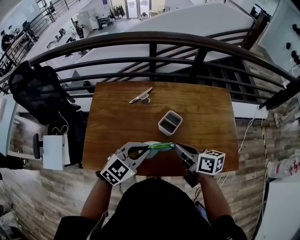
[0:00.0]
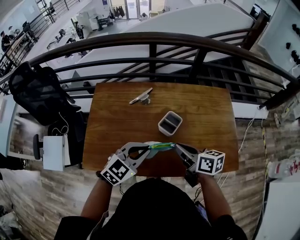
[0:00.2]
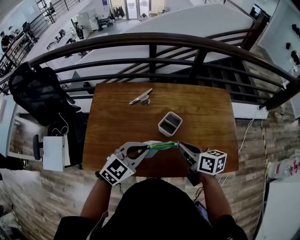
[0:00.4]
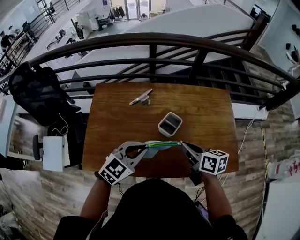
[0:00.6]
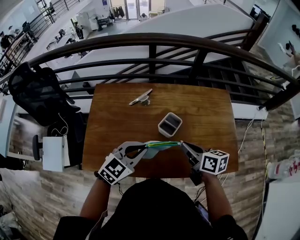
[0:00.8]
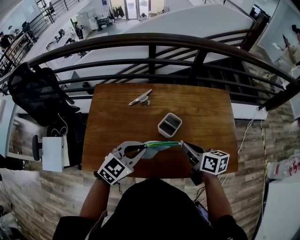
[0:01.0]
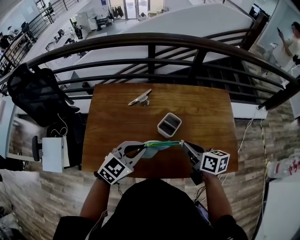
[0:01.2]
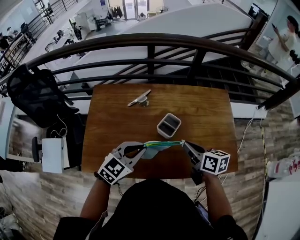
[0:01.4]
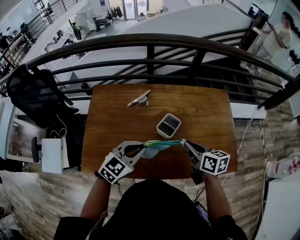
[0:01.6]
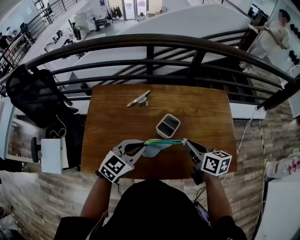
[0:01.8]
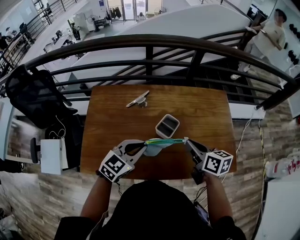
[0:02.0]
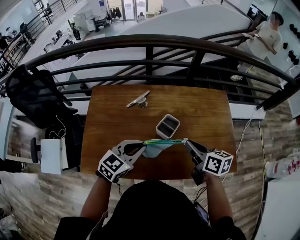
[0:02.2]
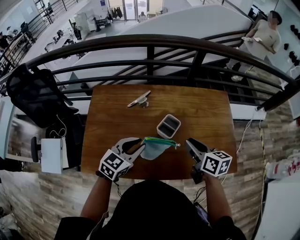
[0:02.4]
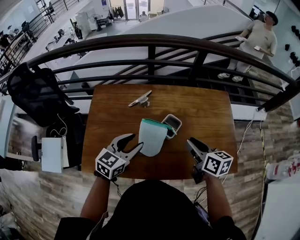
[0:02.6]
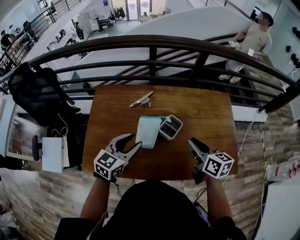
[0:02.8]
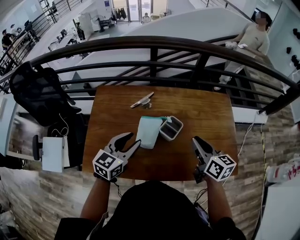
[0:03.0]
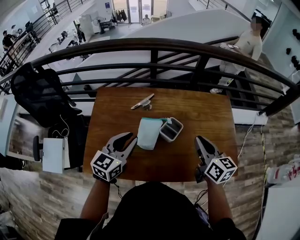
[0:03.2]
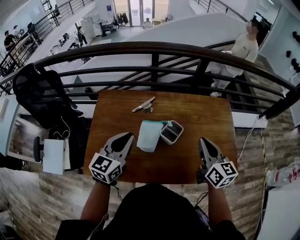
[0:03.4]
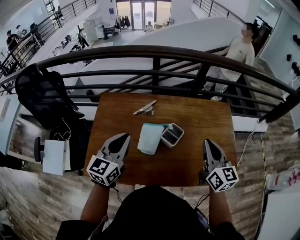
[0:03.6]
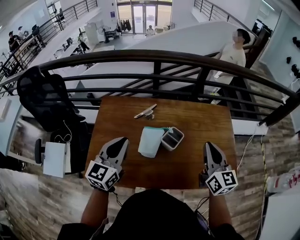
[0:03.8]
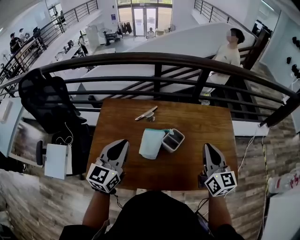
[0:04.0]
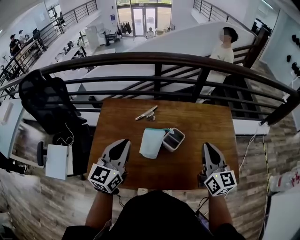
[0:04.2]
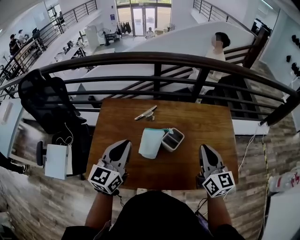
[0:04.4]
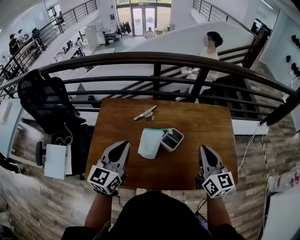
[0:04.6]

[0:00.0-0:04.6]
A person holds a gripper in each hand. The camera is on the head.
0:00.0 to 0:01.6: The right gripper goes roughly 5 cm to the right.
0:01.6 to 0:03.0: The left gripper travels to the left by some 5 cm, changes its angle by approximately 20 degrees, and opens up. The right gripper goes about 5 cm upward.
0:03.0 to 0:04.6: Both grippers move upward, roughly 10 cm. The left gripper closes up, while the right gripper turns by roughly 20 degrees.

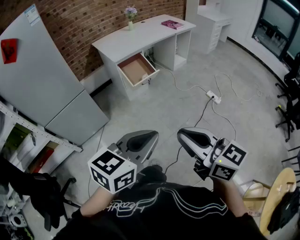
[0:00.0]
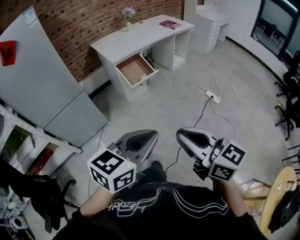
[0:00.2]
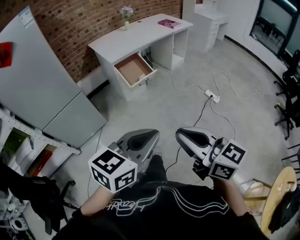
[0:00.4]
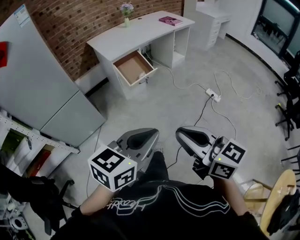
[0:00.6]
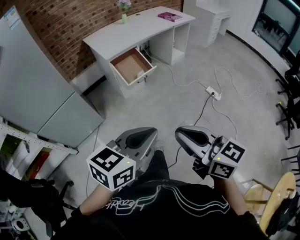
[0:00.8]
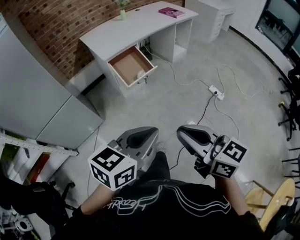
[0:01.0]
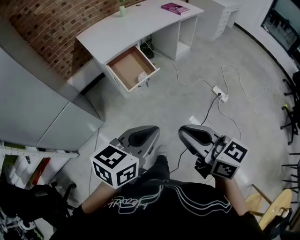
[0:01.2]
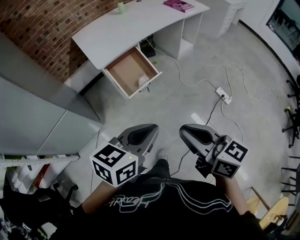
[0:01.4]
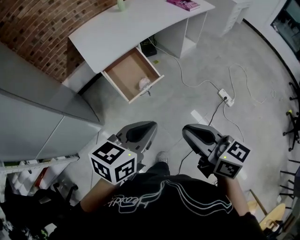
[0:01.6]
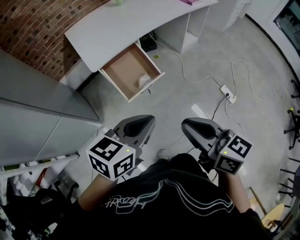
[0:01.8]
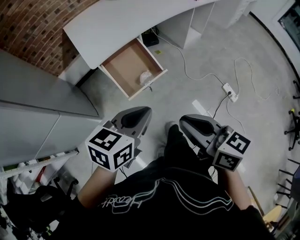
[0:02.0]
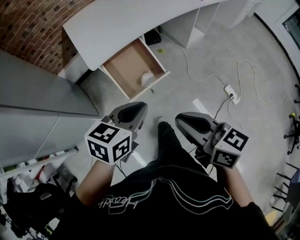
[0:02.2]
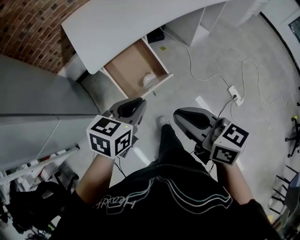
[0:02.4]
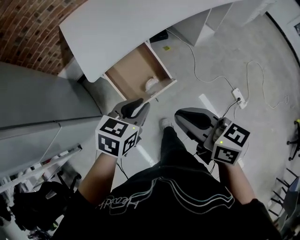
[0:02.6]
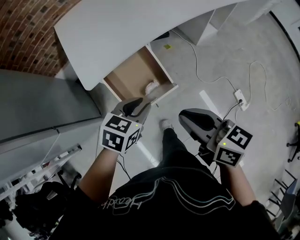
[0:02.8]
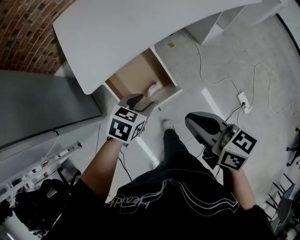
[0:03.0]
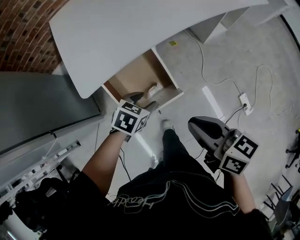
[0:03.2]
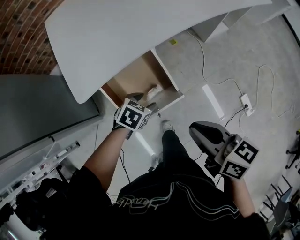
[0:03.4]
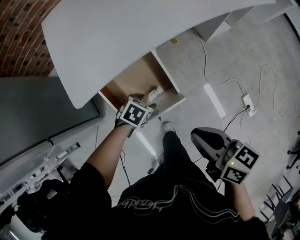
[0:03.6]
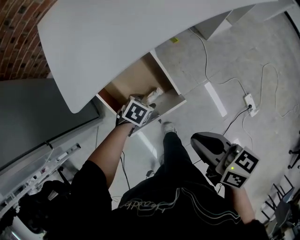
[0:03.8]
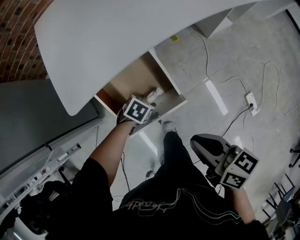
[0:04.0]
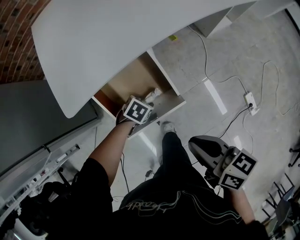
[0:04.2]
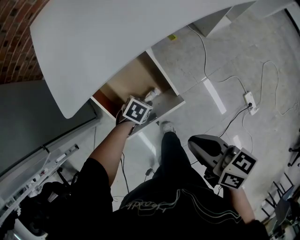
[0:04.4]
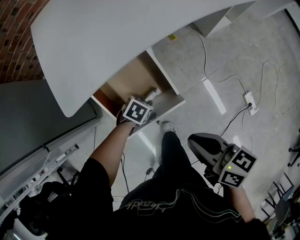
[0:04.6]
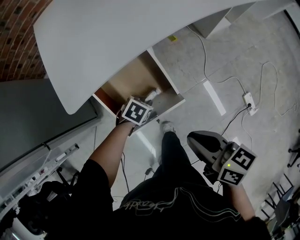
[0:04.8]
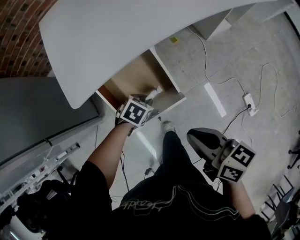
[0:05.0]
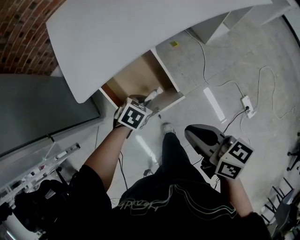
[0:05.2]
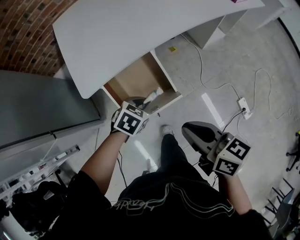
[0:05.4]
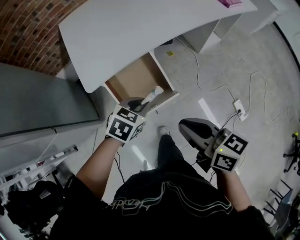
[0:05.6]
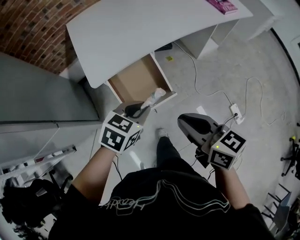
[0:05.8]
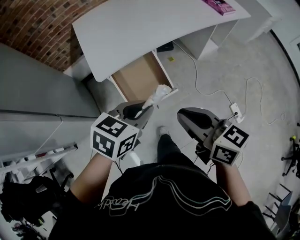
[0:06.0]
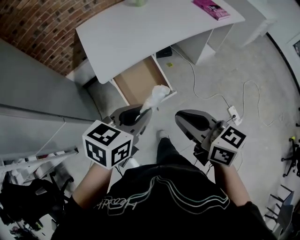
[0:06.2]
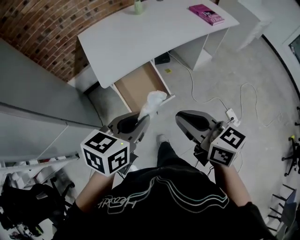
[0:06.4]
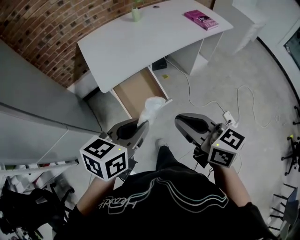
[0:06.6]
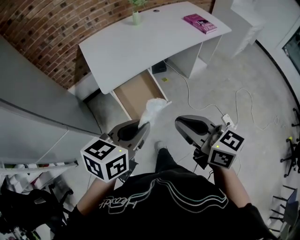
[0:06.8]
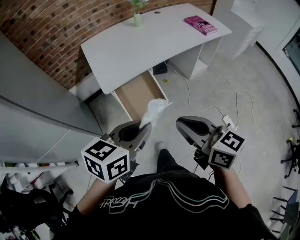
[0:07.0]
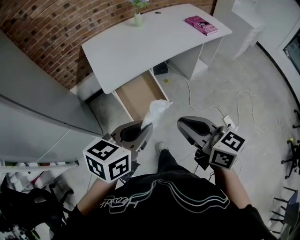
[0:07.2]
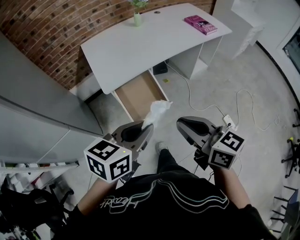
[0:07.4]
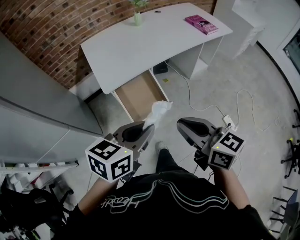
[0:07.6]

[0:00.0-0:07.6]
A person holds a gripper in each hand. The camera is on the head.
0:00.0 to 0:01.6: The pair of grippers is taken forward, approximately 50 cm.
0:01.6 to 0:03.0: The left gripper goes approximately 50 cm forward and downward, turns by some 30 degrees, and opens up. The right gripper is displaced forward by about 40 cm.
0:03.0 to 0:04.6: The right gripper shifts some 15 cm downward, while the left gripper moves downward, about 25 cm, turns by about 20 degrees, and closes its fingers.
0:04.6 to 0:06.0: The left gripper heads upward, covering about 40 cm, and points its fingers some 30 degrees further upward, while the right gripper moves upward, approximately 25 cm, and swivels about 20 degrees.
0:06.0 to 0:07.6: The left gripper heads upward and backward, covering roughly 15 cm. Meanwhile the right gripper moves backward and upward, some 15 cm.

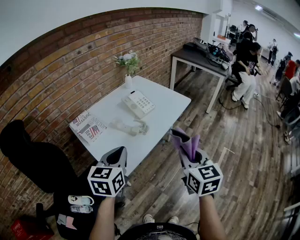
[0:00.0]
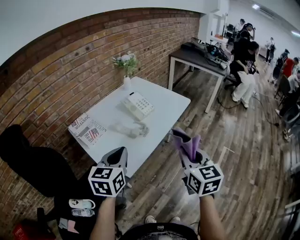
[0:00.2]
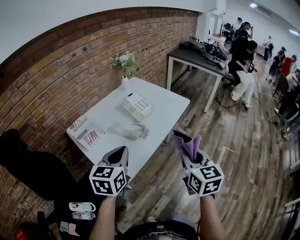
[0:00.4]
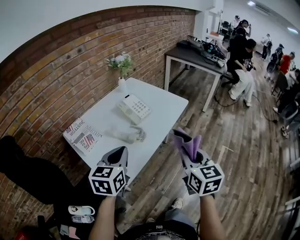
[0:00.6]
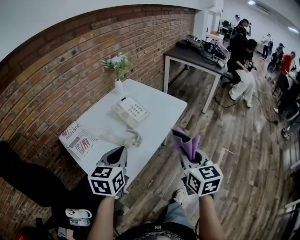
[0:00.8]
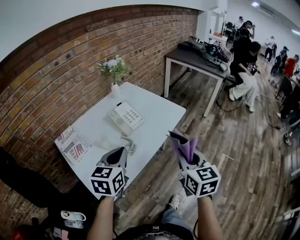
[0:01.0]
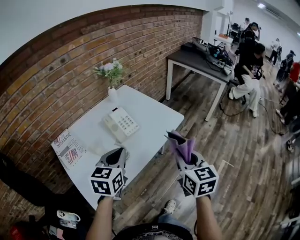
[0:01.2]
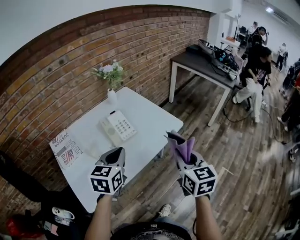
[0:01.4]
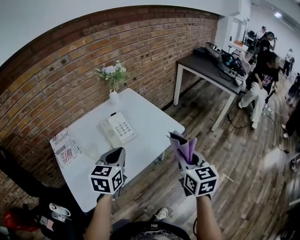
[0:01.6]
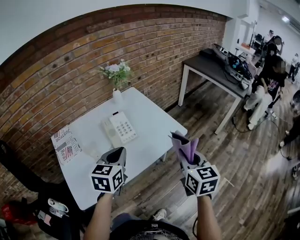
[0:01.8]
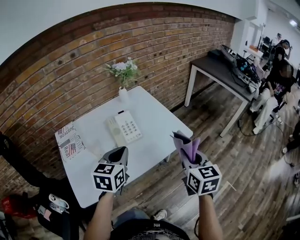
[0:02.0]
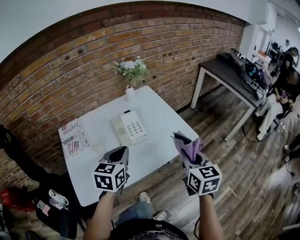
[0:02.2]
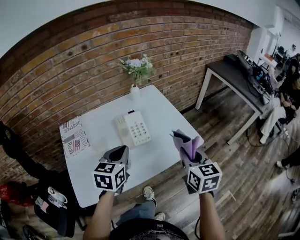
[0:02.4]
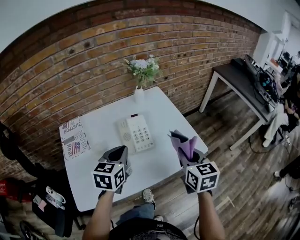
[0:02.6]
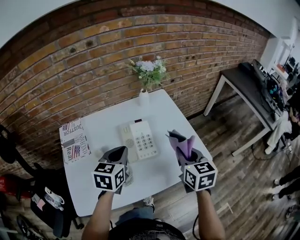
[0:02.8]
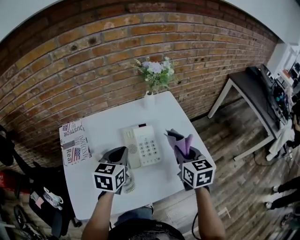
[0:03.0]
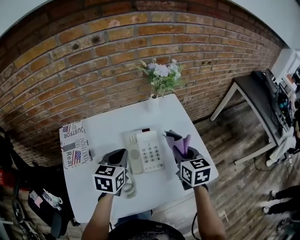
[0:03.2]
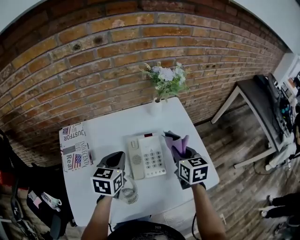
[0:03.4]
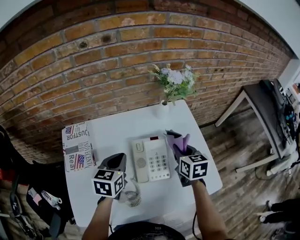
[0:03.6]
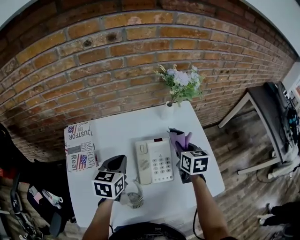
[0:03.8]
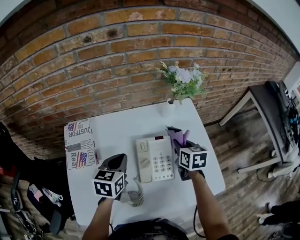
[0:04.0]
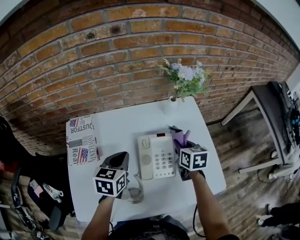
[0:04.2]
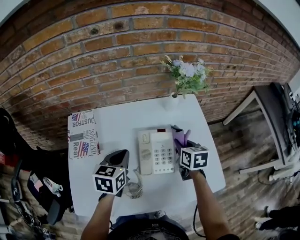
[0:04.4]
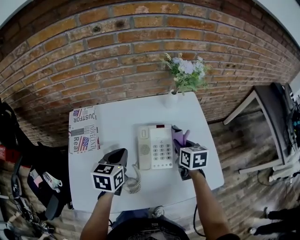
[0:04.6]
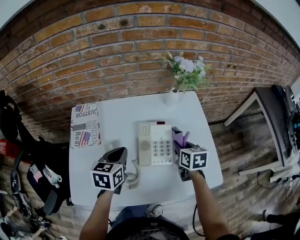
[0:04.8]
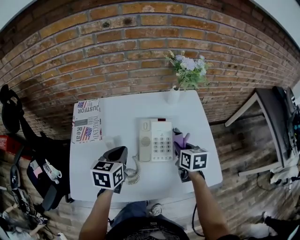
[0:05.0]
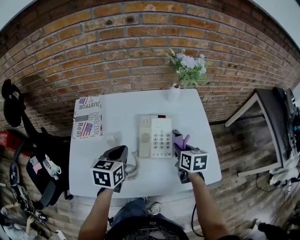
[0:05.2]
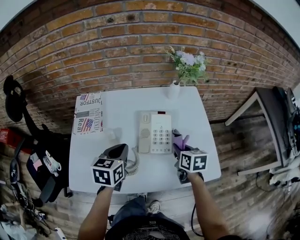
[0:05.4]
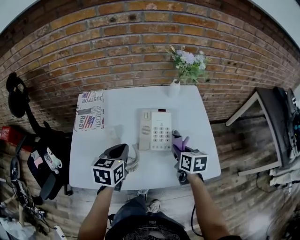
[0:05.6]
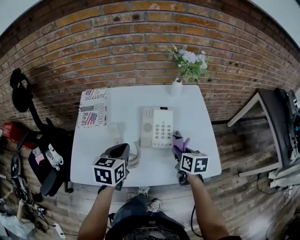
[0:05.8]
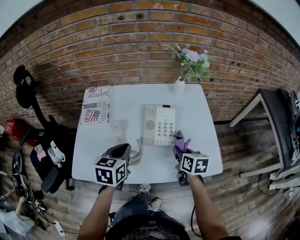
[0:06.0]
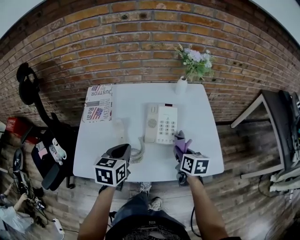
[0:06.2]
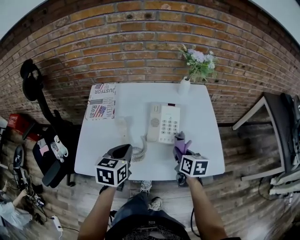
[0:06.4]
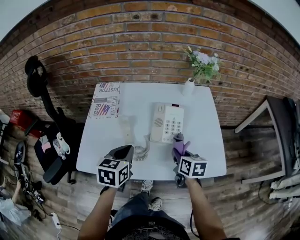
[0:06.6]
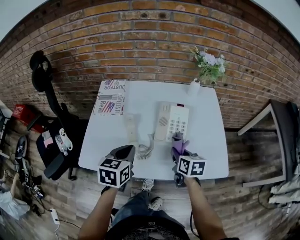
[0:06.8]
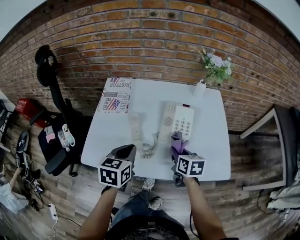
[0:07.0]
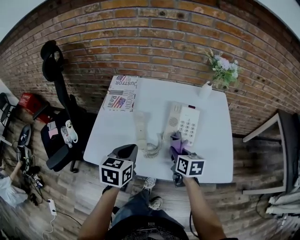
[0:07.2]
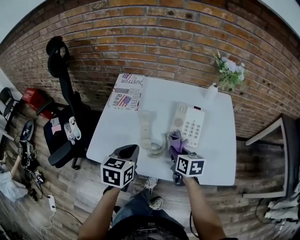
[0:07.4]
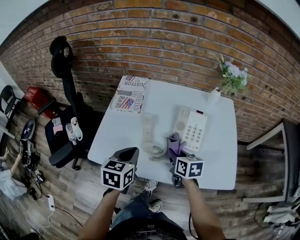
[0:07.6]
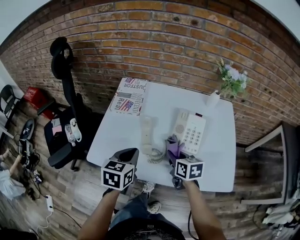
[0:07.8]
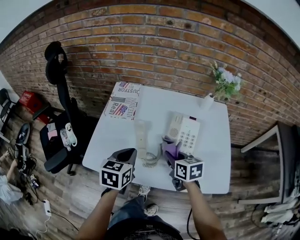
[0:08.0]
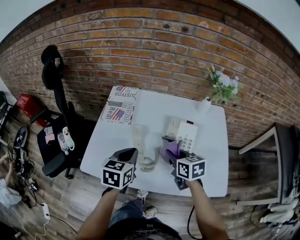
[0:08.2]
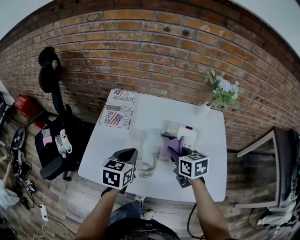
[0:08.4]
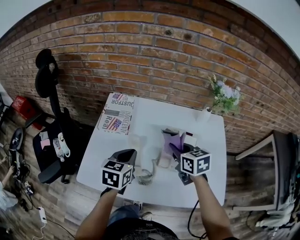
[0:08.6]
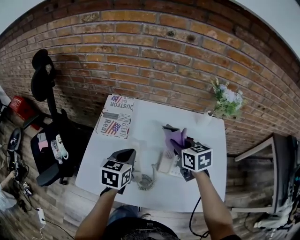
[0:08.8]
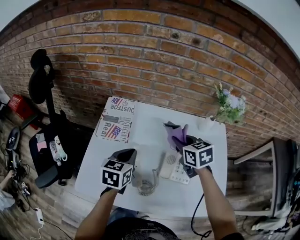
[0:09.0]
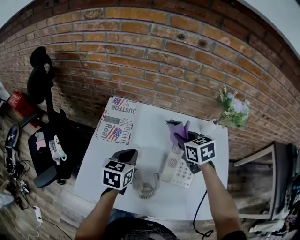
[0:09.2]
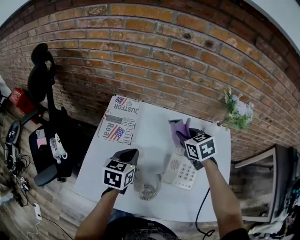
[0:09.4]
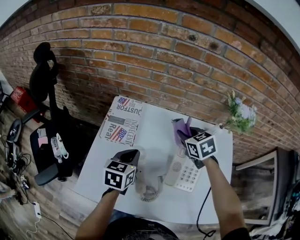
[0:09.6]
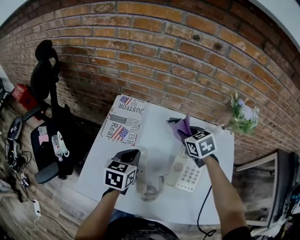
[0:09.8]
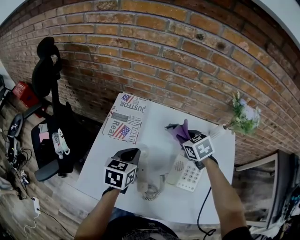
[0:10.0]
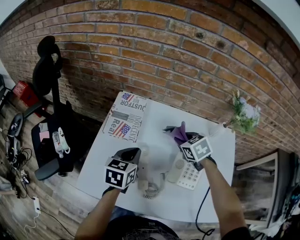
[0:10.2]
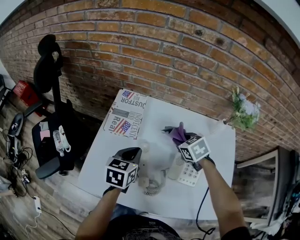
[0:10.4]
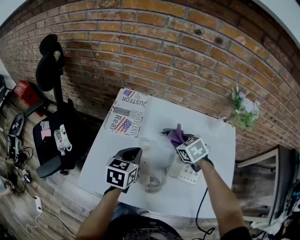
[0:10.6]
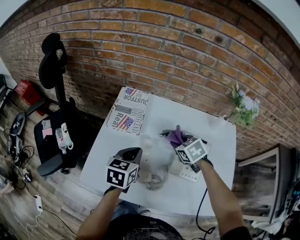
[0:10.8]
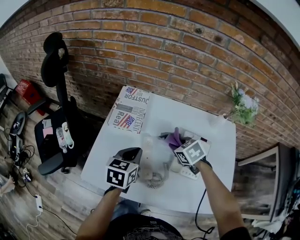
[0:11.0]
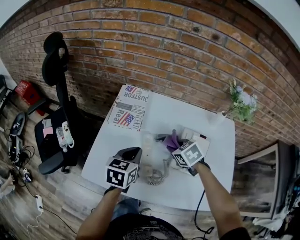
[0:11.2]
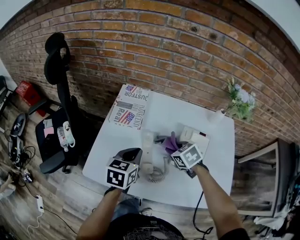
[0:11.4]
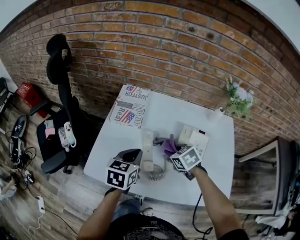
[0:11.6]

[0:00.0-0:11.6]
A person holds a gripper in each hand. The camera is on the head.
0:00.0 to 0:01.4: The two grippers go some 25 cm forward and to the right.
0:01.4 to 0:02.8: The right gripper shifts some 25 cm forward, and changes its angle by approximately 20 degrees, while the left gripper is displaced forward and to the left by approximately 15 cm, and changes its angle by some 20 degrees.
0:02.8 to 0:04.4: The left gripper is displaced to the left, forward and downward by roughly 10 cm. The right gripper heads forward, downward and to the left, covering approximately 25 cm.
0:04.4 to 0:05.8: Both grippers move backward, some 15 cm.
0:05.8 to 0:07.2: The right gripper shifts some 10 cm to the left, while the left gripper heads backward and to the left, covering approximately 10 cm.
0:07.2 to 0:08.8: The left gripper travels forward by roughly 15 cm. Meanwhile the right gripper travels forward and upward by some 20 cm, and turns by some 20 degrees.
0:08.8 to 0:10.2: The right gripper is displaced forward and downward by some 10 cm, and swivels approximately 30 degrees. The left gripper changes place by roughly 5 cm.
0:10.2 to 0:11.6: The left gripper travels backward by roughly 10 cm. The right gripper heads backward and to the left, covering some 15 cm.
